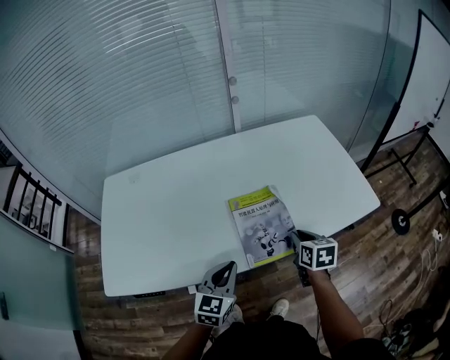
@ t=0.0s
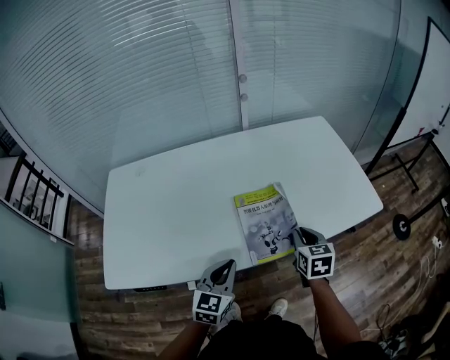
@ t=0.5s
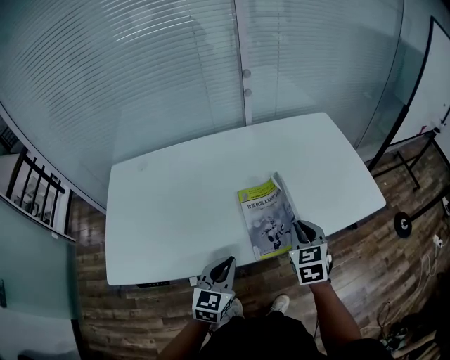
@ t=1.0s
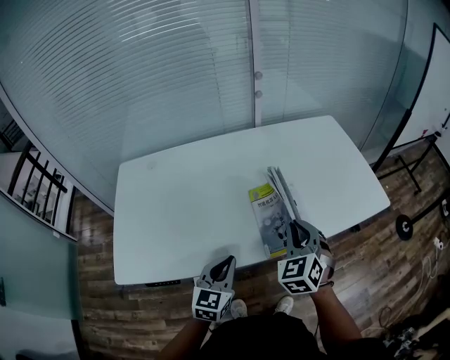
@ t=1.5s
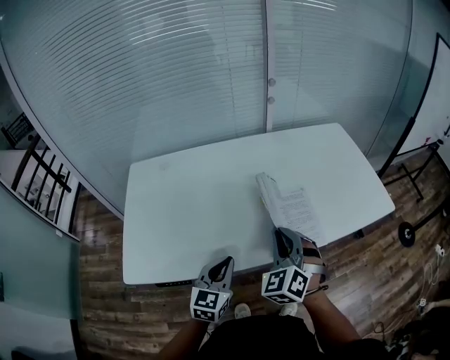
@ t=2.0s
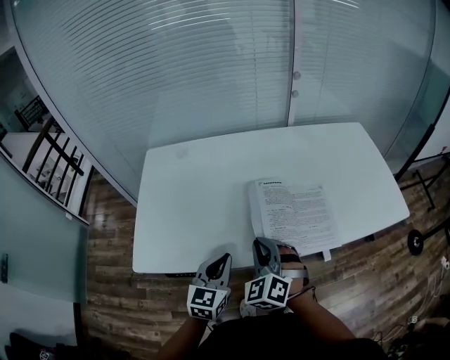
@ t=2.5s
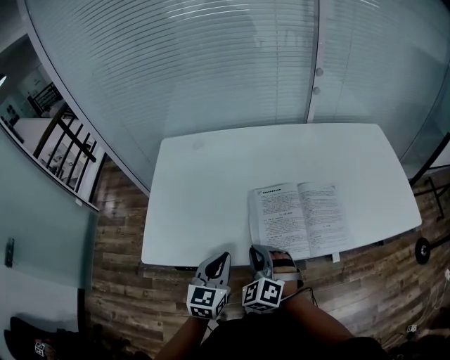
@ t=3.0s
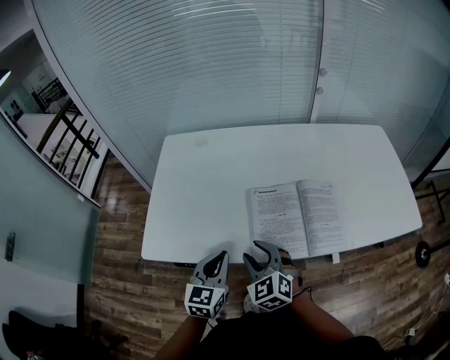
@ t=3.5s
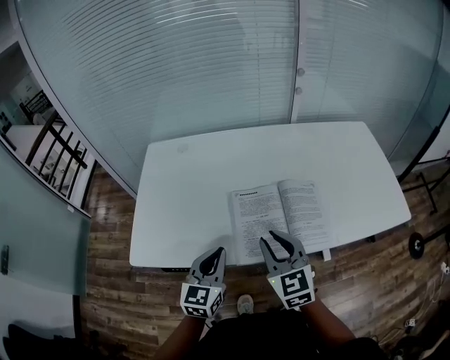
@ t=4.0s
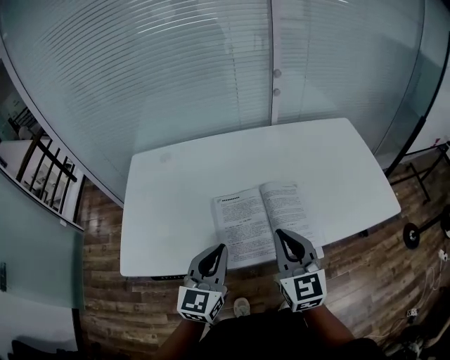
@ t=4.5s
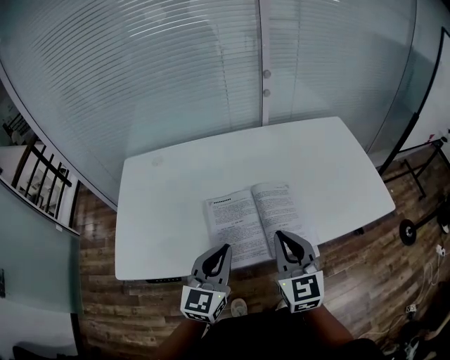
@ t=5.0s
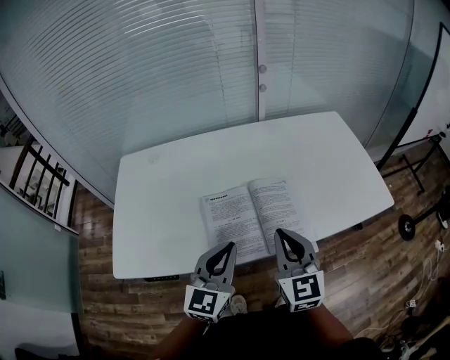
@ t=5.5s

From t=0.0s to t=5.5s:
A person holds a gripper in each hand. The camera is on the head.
From t=0.0s to t=2.0s: The right gripper moves to the left, upward and backward, about 25 cm, and rotates around the line of its fingers by approximately 60 degrees, counterclockwise from behind; the left gripper heads to the left, covering about 10 cm.
From t=2.0s to t=3.5s: The left gripper changes place by about 10 cm. Meanwhile the right gripper shifts by about 20 cm, rotates roughly 30 degrees, and opens its fingers.
From t=3.5s to t=5.5s: The grippers both shift to the right and upward by about 20 cm. The right gripper rotates approximately 40 degrees, and closes.

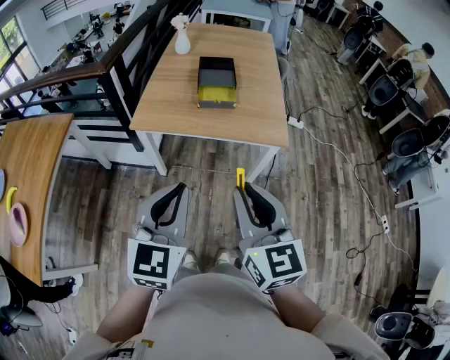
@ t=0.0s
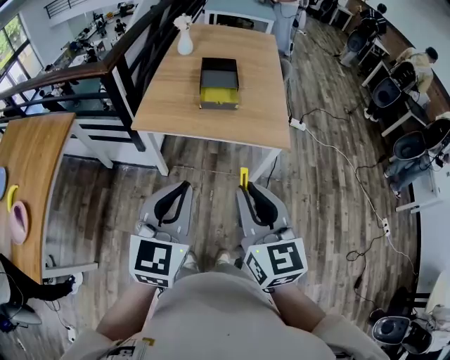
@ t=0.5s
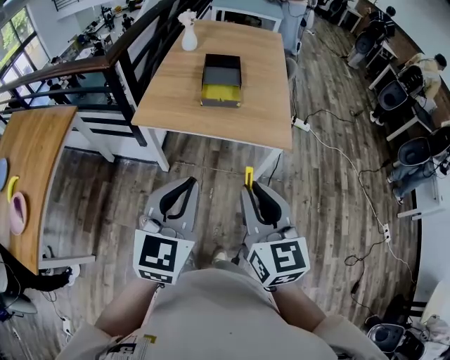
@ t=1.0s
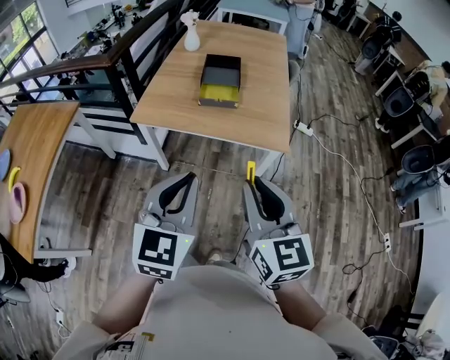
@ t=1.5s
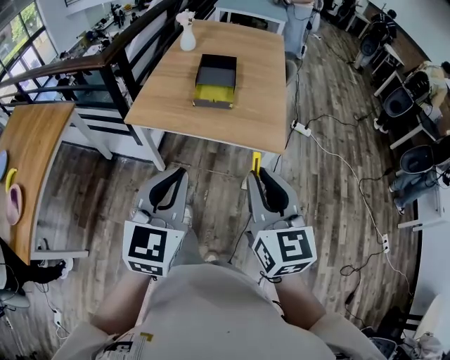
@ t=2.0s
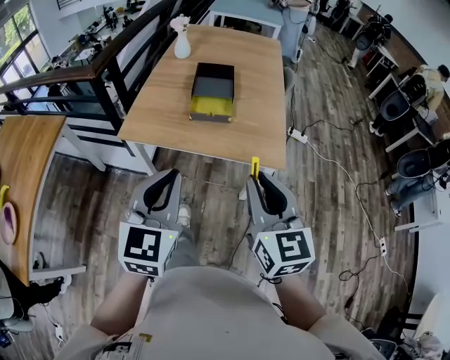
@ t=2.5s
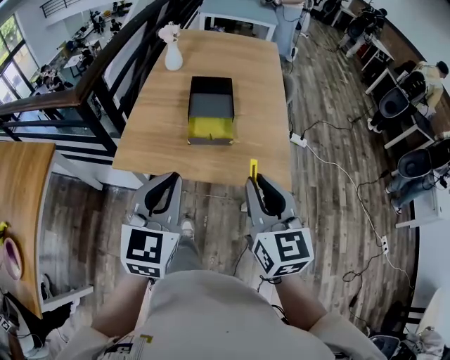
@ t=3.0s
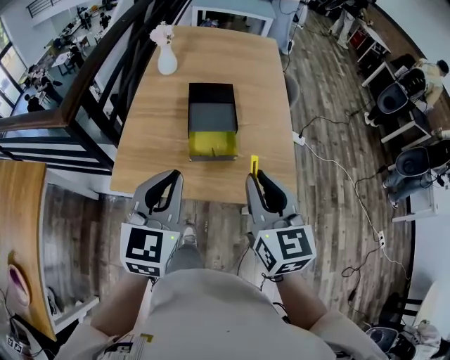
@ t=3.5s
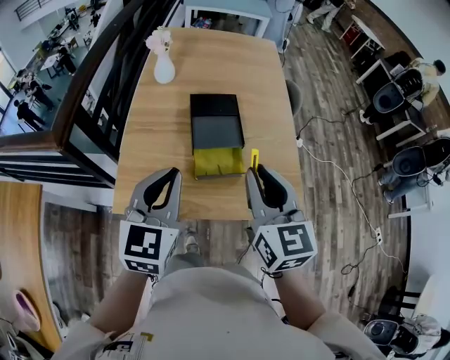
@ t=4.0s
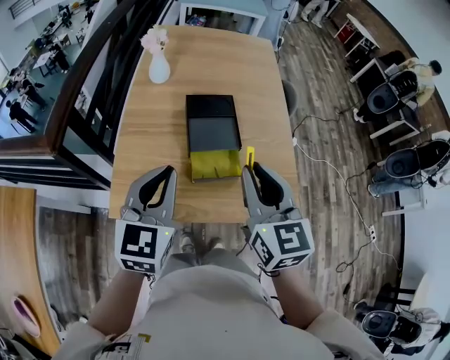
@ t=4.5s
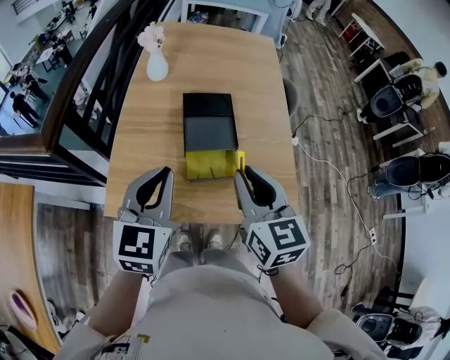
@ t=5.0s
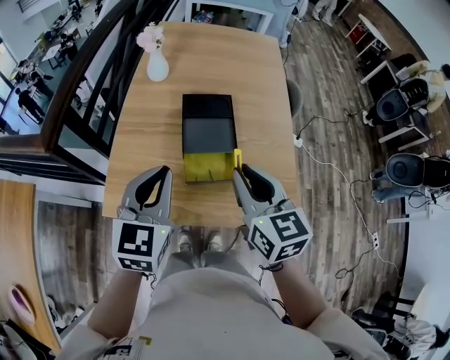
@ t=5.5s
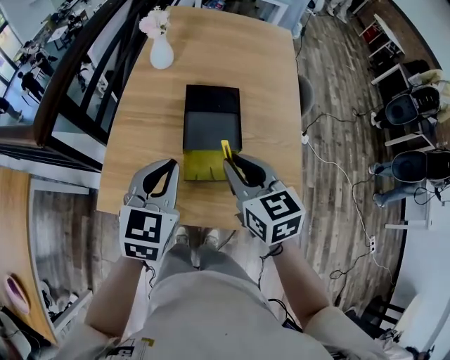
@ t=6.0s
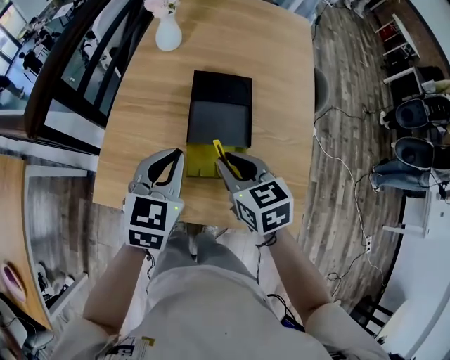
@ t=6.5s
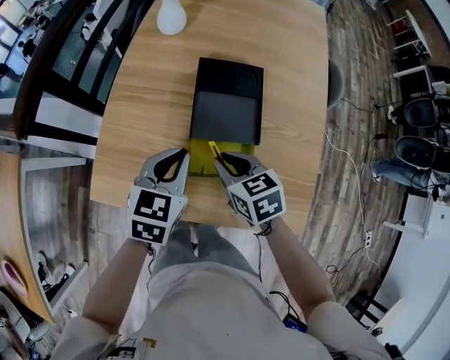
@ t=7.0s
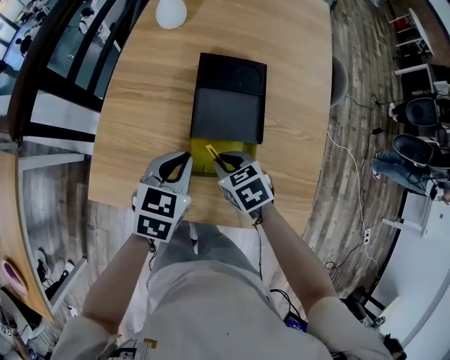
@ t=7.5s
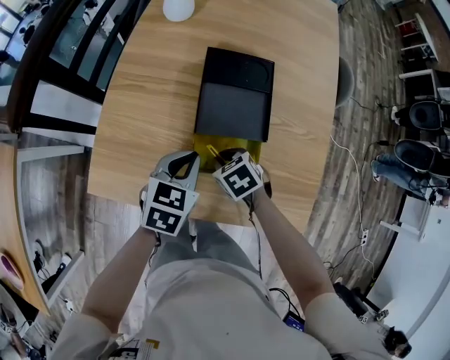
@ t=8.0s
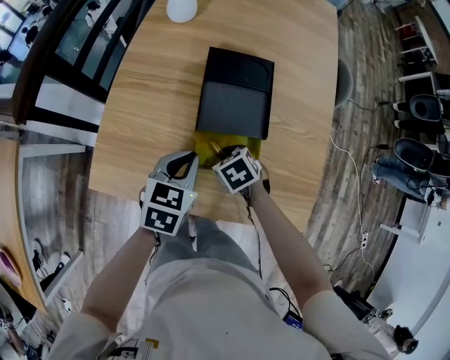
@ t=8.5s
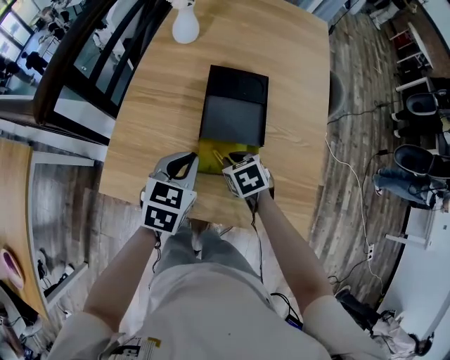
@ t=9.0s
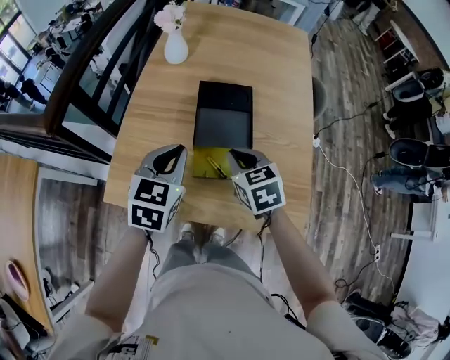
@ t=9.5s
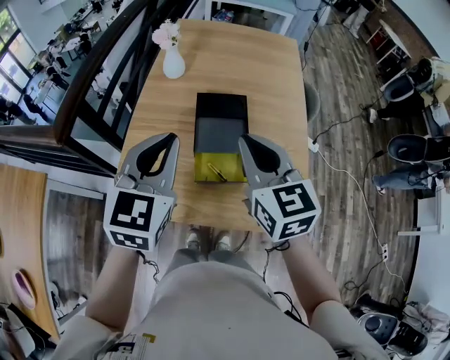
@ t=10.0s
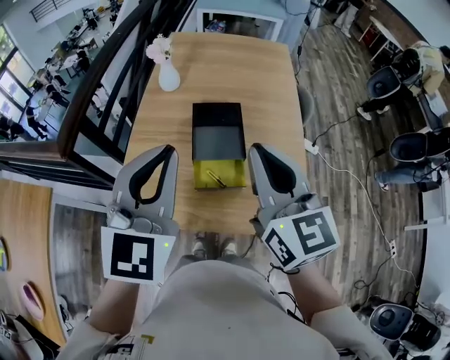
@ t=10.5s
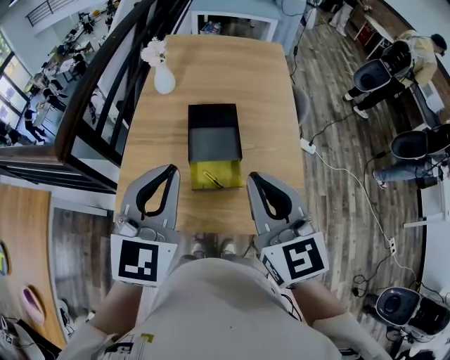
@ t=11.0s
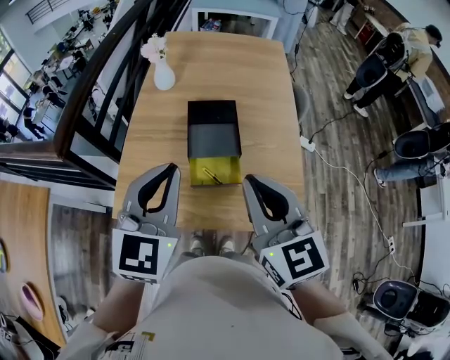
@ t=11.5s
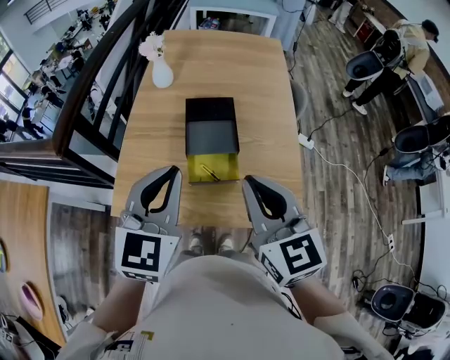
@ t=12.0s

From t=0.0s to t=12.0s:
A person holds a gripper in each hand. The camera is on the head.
From t=0.0s to t=2.0s: The right gripper is displaced to the right and forward by some 15 cm; the left gripper shifts roughly 10 cm to the right.
From t=2.0s to t=4.0s: Both grippers are carried forward, about 50 cm.
From t=4.0s to t=6.0s: Both grippers move forward and downward, approximately 15 cm. The right gripper rotates roughly 20 degrees.
From t=6.0s to t=8.0s: The grippers both shift downward by some 25 cm. The right gripper tilts its fingers some 40 degrees downward; the left gripper turns by approximately 20 degrees.
From t=8.0s to t=10.0s: The grippers both shift upward by about 35 cm. The right gripper tilts its fingers approximately 50 degrees upward, while the left gripper swivels about 30 degrees.
From t=10.0s to t=12.0s: The grippers both shift backward by some 10 cm. The left gripper moves roughly 10 cm upward and comes back.

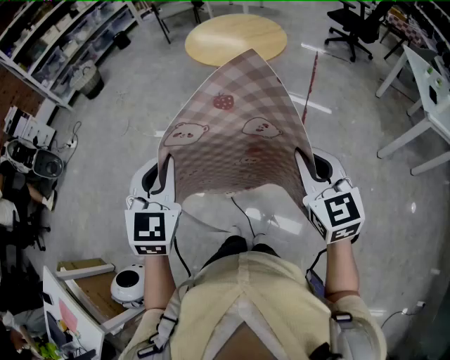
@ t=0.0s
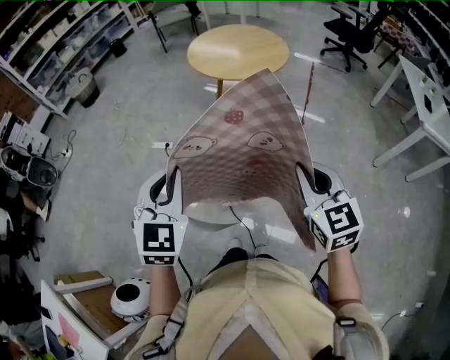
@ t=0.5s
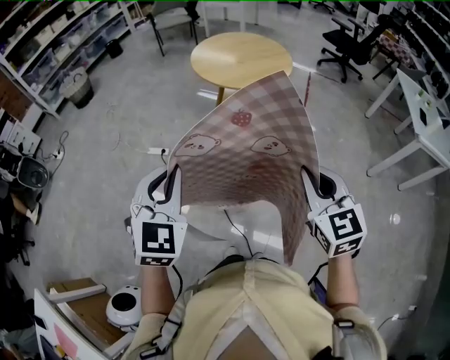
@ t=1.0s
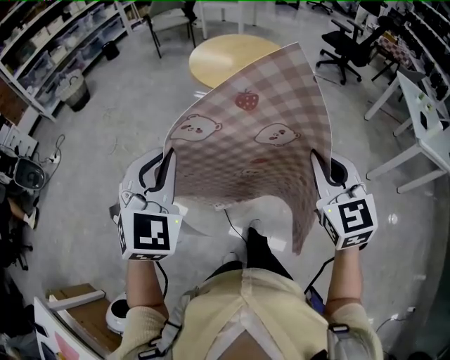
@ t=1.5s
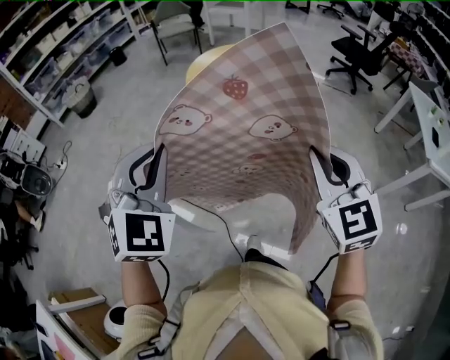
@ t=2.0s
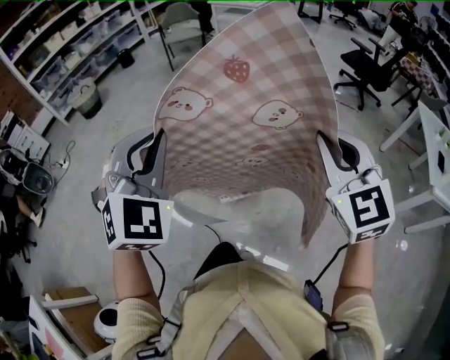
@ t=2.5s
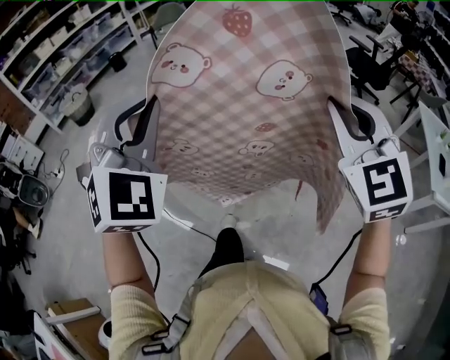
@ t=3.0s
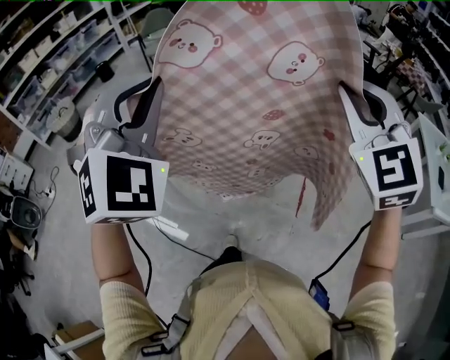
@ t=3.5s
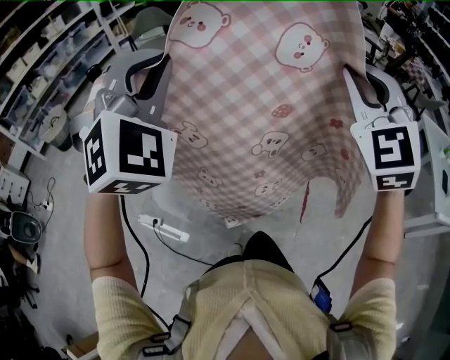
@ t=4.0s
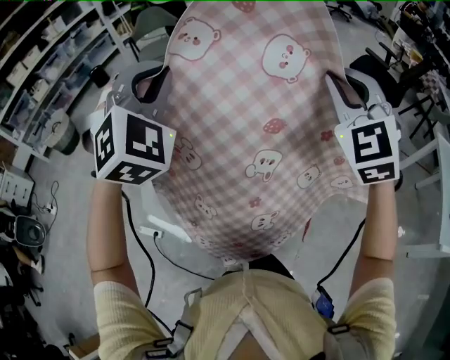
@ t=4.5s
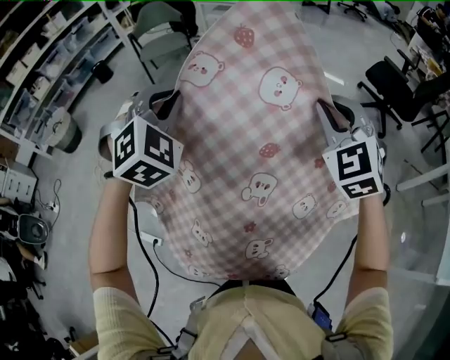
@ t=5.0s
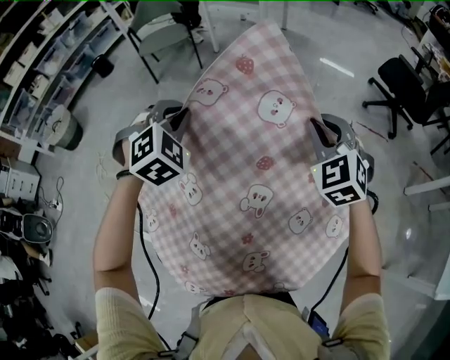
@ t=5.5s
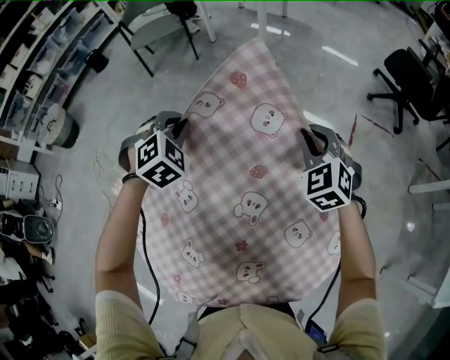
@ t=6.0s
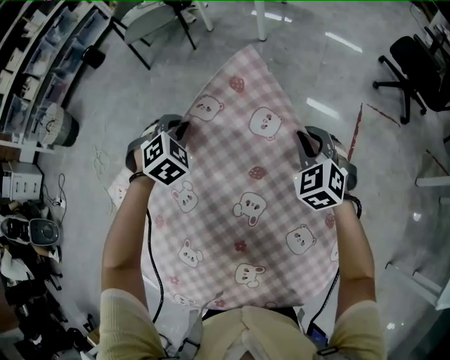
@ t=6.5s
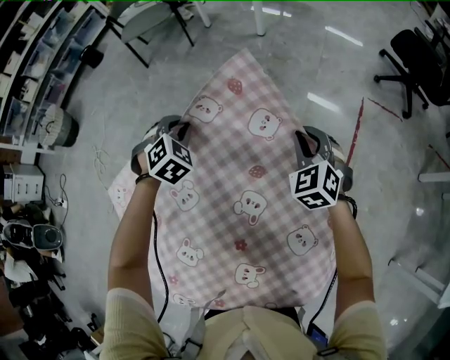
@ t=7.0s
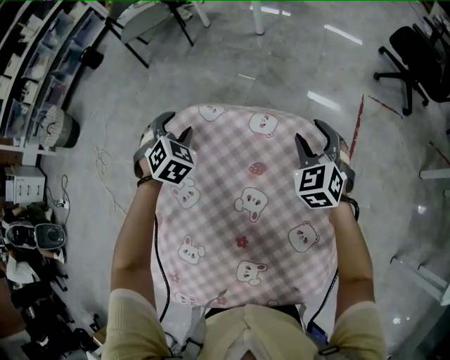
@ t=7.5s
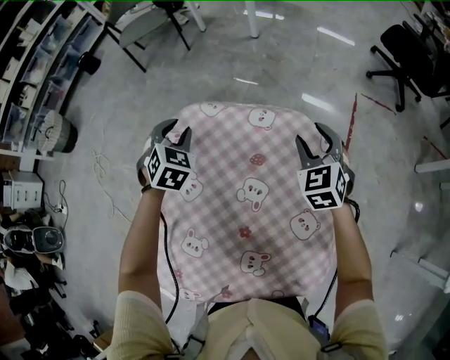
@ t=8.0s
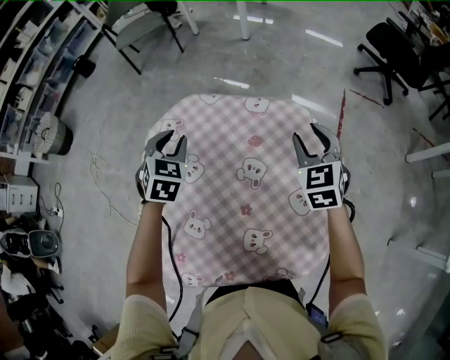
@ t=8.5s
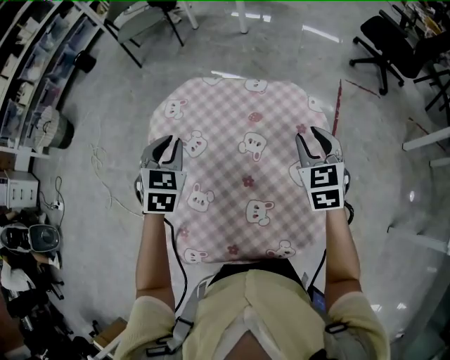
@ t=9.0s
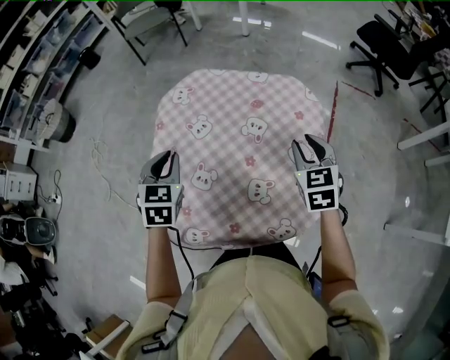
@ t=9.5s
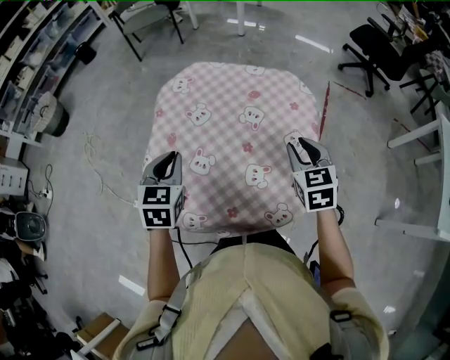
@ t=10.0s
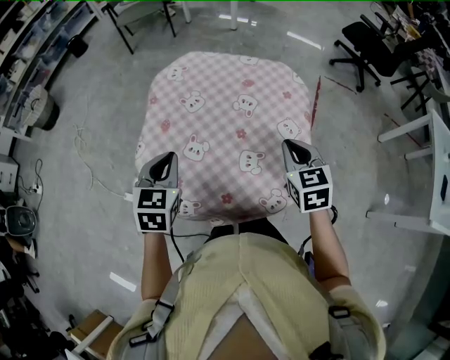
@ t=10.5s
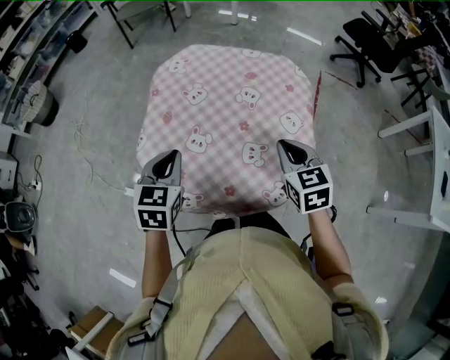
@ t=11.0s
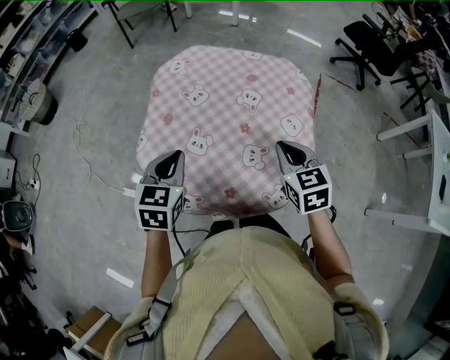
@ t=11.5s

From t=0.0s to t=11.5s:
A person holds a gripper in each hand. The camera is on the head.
From t=0.0s to t=2.0s: The left gripper heads forward and to the left, covering about 10 cm, and swivels roughly 20 degrees. The right gripper moves to the left and forward, some 10 cm.
From t=2.0s to t=4.0s: The two grippers travel together, forward, about 60 cm. The left gripper swivels roughly 20 degrees. The right gripper swivels roughly 30 degrees.
From t=4.0s to t=6.0s: The grippers both shift forward and downward by about 25 cm. The right gripper tips its fingers downward by about 30 degrees; the left gripper tilts its fingers approximately 40 degrees downward.
From t=6.0s to t=7.5s: The left gripper shifts some 5 cm downward, and opens up, while the right gripper opens its fingers.
From t=7.5s to t=9.5s: Both grippers travel together backward, about 30 cm. The right gripper rotates about 20 degrees, and closes its fingers. The left gripper changes its angle by roughly 40 degrees, and closes its fingers.
From t=9.5s to t=11.5s: The left gripper shifts about 10 cm backward. The right gripper travels backward and to the left by approximately 15 cm, and closes up.
